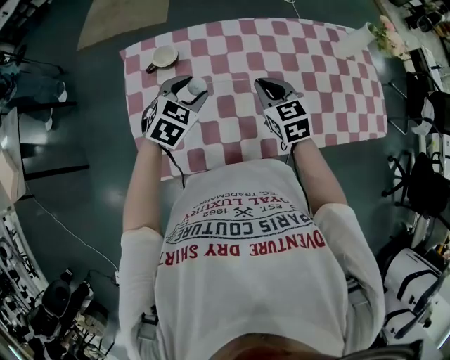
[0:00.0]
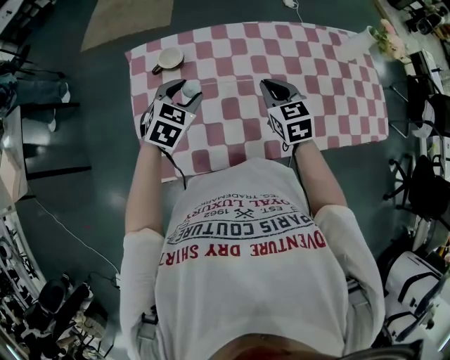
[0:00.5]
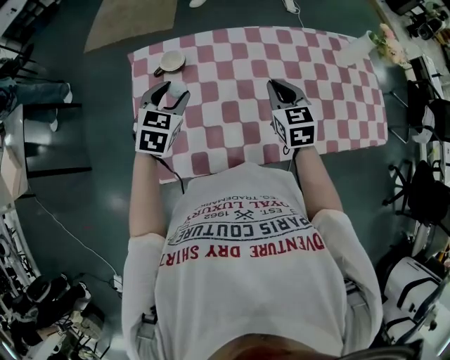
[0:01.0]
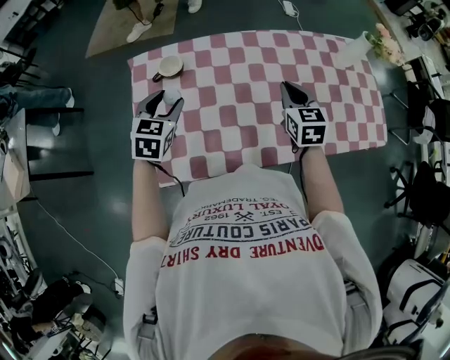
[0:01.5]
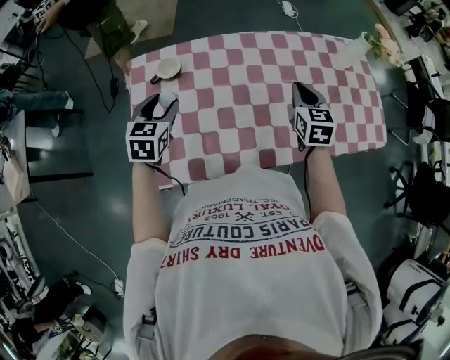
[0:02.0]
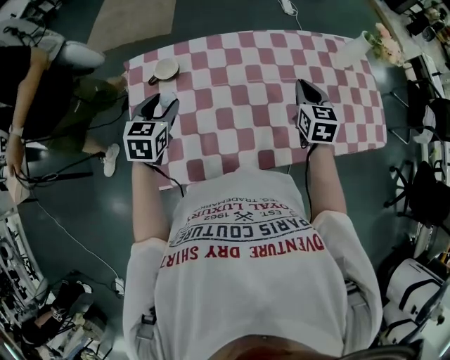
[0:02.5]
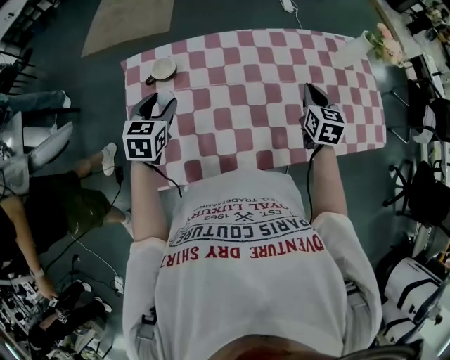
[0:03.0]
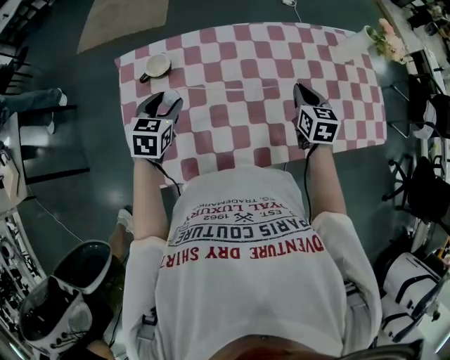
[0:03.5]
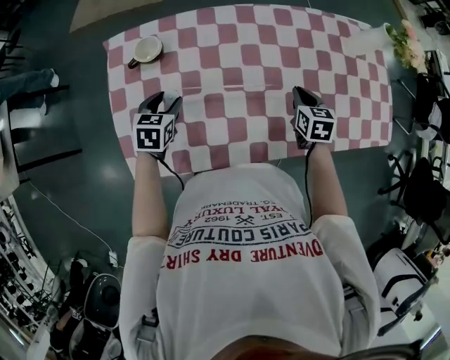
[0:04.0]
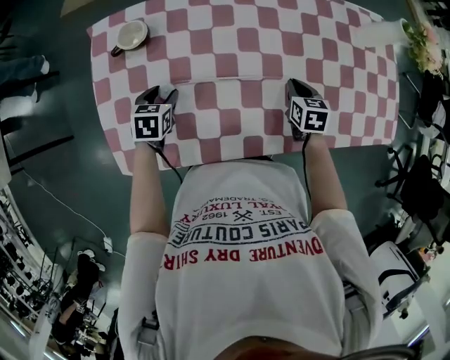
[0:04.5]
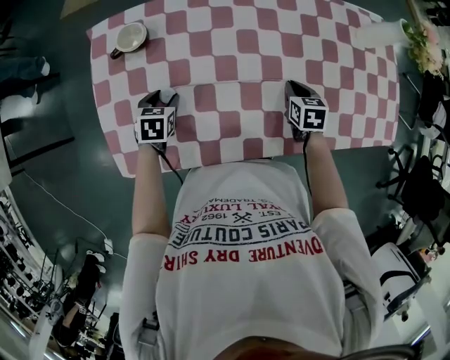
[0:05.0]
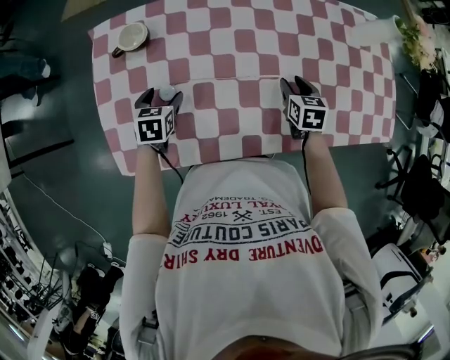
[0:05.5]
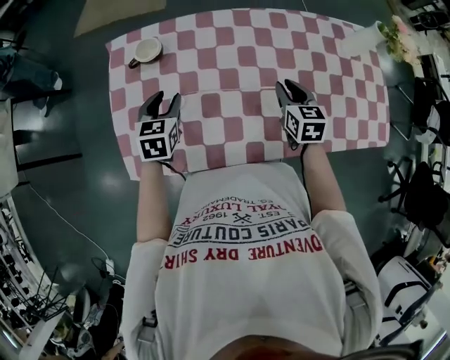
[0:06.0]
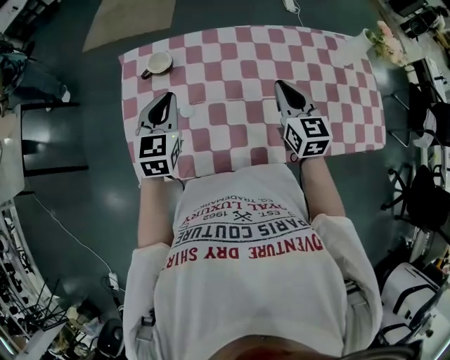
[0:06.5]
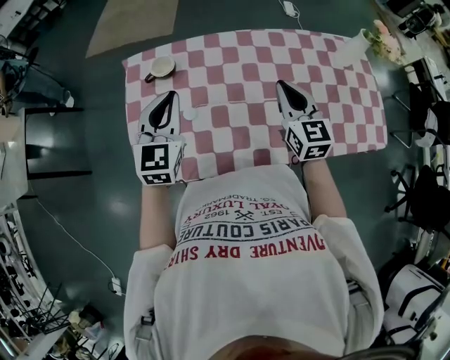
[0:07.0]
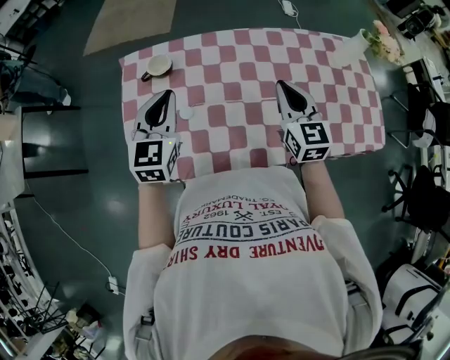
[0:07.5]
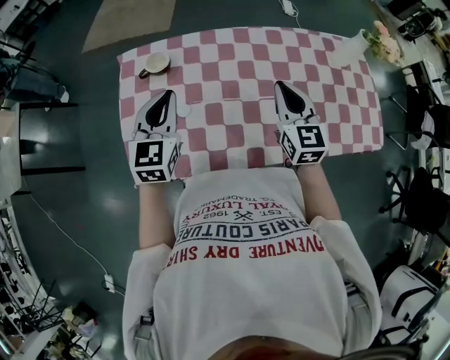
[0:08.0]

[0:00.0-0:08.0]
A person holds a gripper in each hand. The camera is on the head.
0:00.0 to 0:02.0: The right gripper shifts some 10 cm to the right, and swivels approximately 20 degrees, while the left gripper shifts some 10 cm to the left, and turns by approximately 30 degrees.
0:02.0 to 0:04.0: The grippers both shift downward by some 15 cm.
0:04.0 to 0:06.0: The right gripper changes place by roughly 5 cm; the left gripper reaches some 10 cm downward, then returns.
0:06.0 to 0:08.0: Both grippers travel together upward, some 15 cm. The left gripper changes its angle by approximately 30 degrees, and closes up. The right gripper rotates approximately 20 degrees, and closes its fingers.

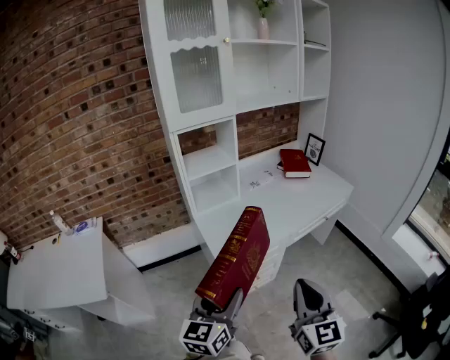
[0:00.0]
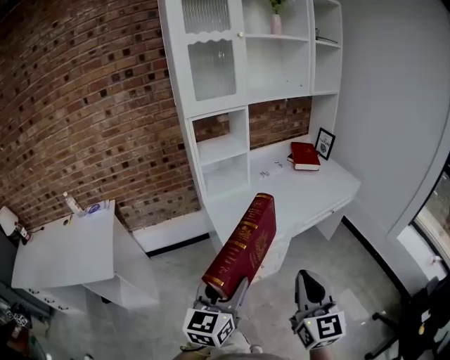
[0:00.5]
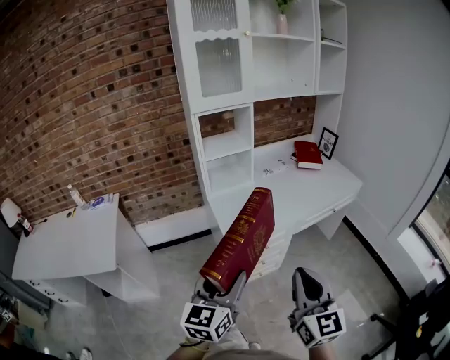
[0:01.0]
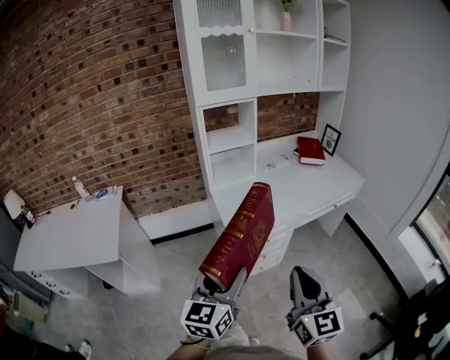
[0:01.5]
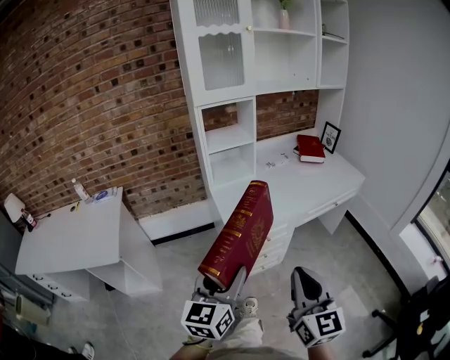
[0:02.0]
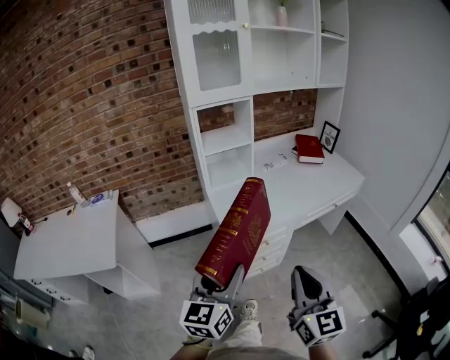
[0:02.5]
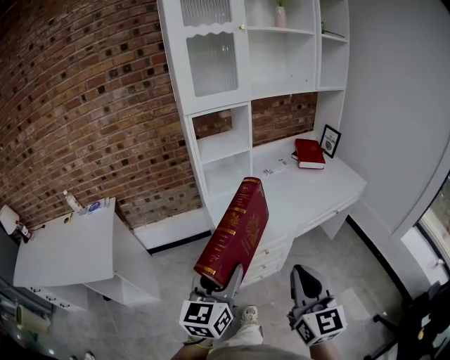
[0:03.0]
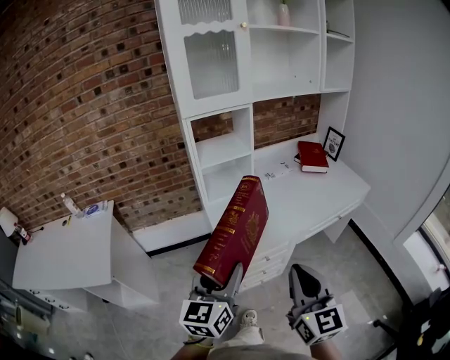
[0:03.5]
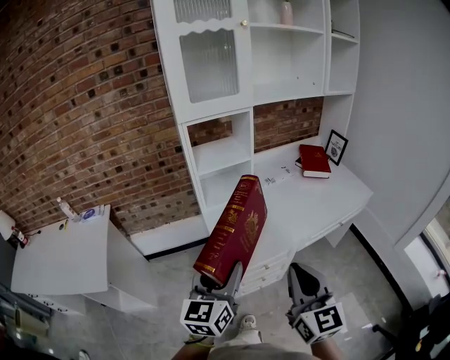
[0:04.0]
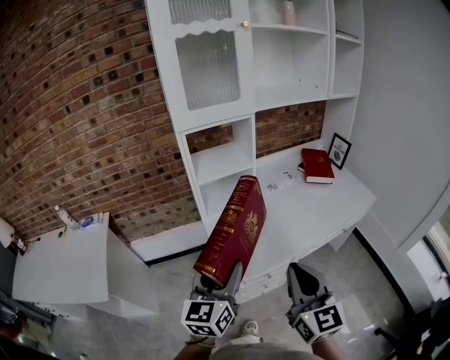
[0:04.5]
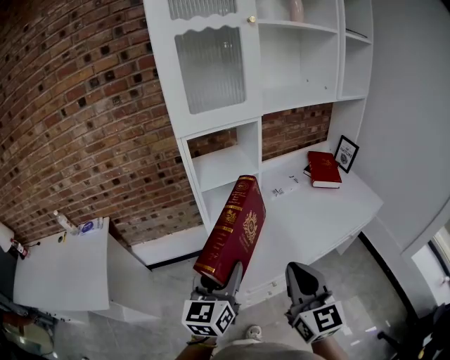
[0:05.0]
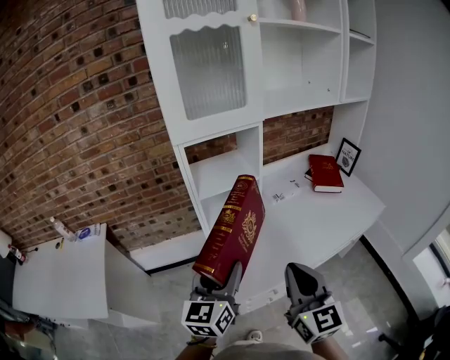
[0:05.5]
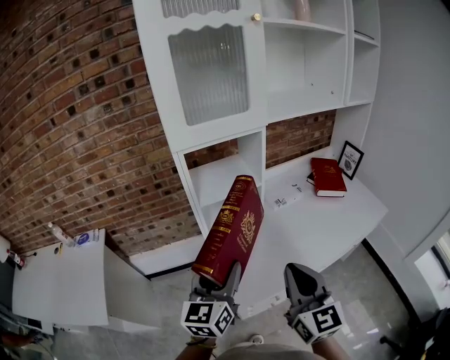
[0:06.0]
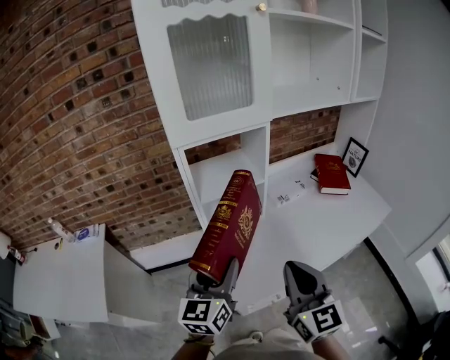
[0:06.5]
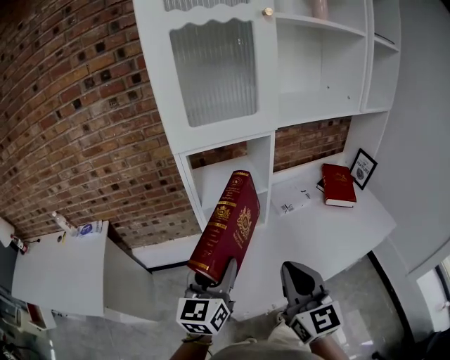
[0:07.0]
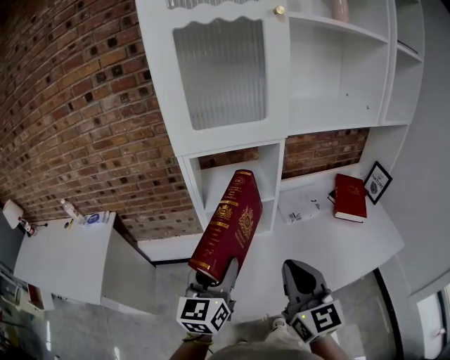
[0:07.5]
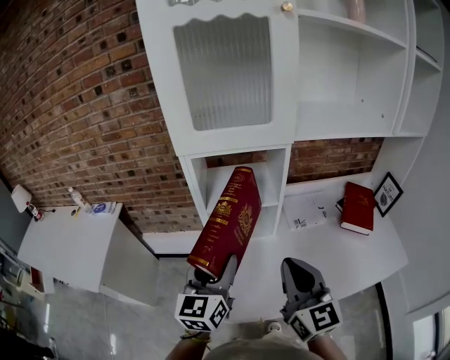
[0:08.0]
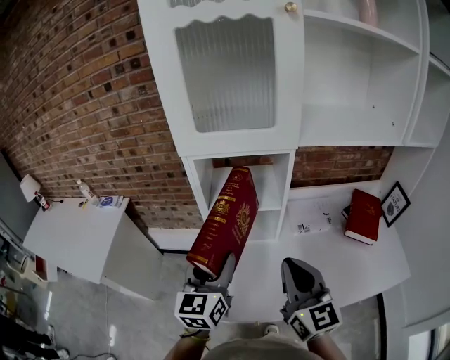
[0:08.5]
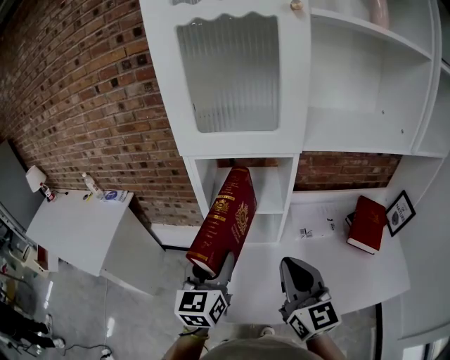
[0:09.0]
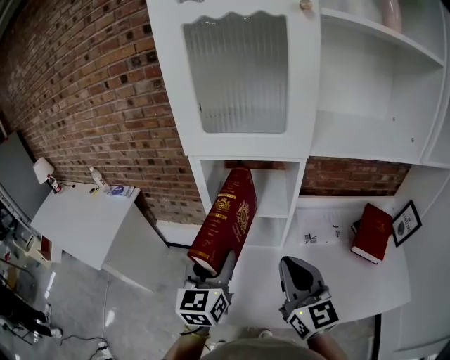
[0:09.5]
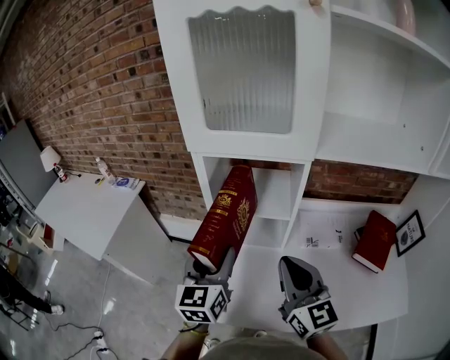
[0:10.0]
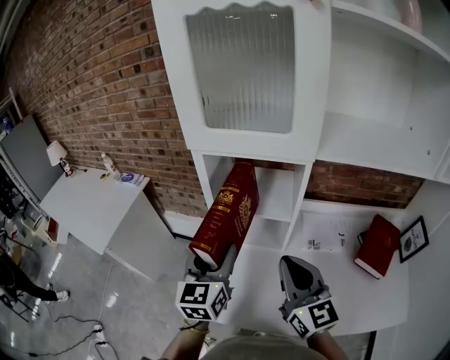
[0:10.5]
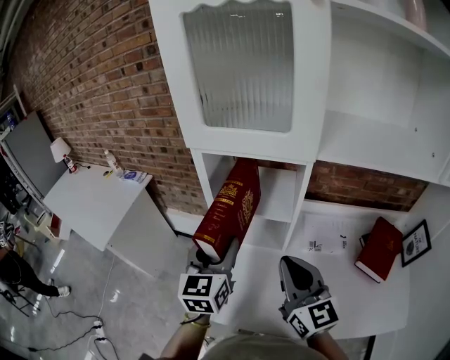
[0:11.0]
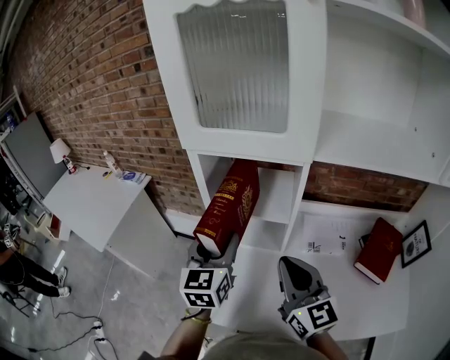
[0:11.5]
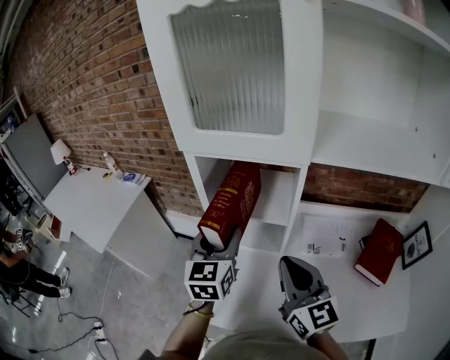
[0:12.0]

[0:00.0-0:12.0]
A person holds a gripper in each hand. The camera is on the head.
0:00.0 to 0:02.0: The grippers both shift backward by approximately 5 cm.
0:02.0 to 0:04.0: Both grippers travel together forward, about 20 cm.
0:04.0 to 0:06.0: The grippers both shift forward by some 15 cm.
0:06.0 to 0:08.0: The right gripper heads forward, covering roughly 10 cm. The left gripper shifts approximately 10 cm forward.
0:08.0 to 0:10.0: The right gripper is displaced forward by some 5 cm.
0:10.0 to 0:12.0: The left gripper shifts roughly 5 cm forward.

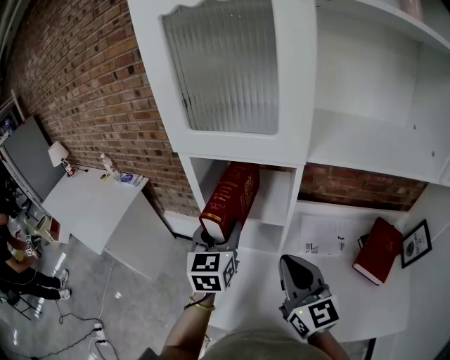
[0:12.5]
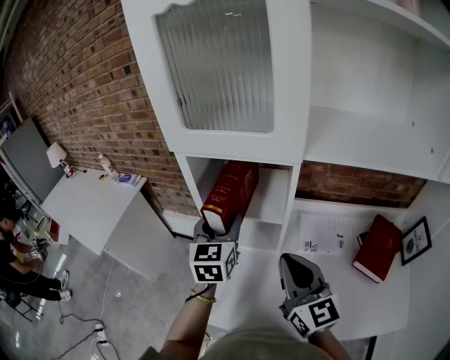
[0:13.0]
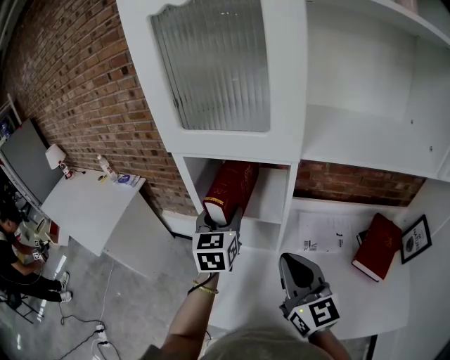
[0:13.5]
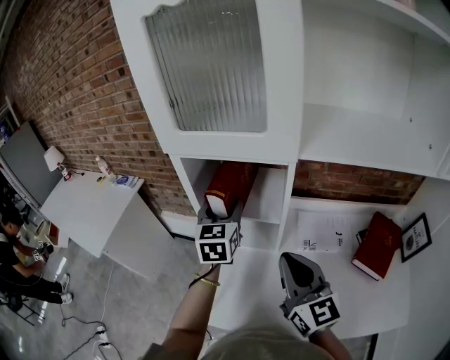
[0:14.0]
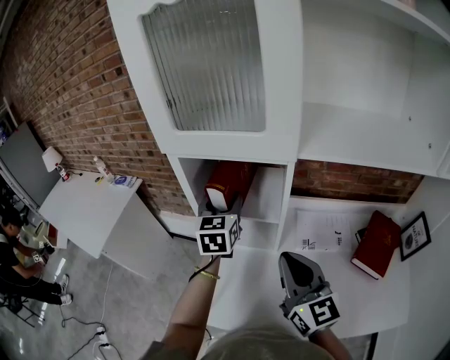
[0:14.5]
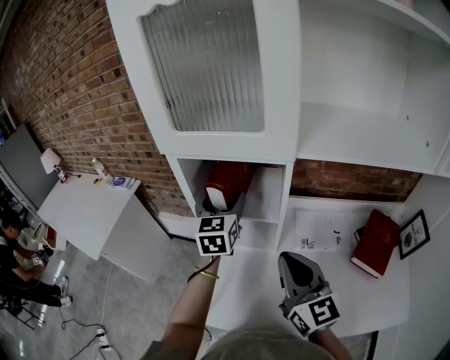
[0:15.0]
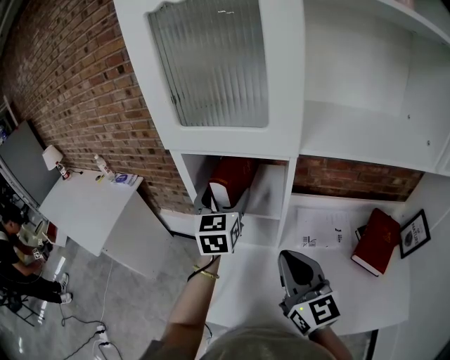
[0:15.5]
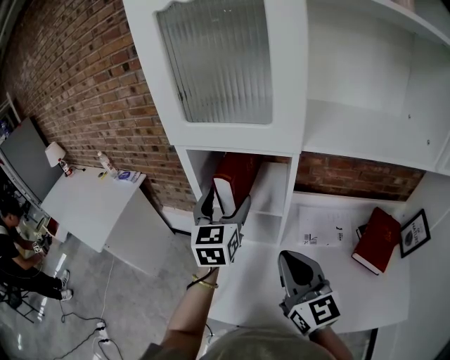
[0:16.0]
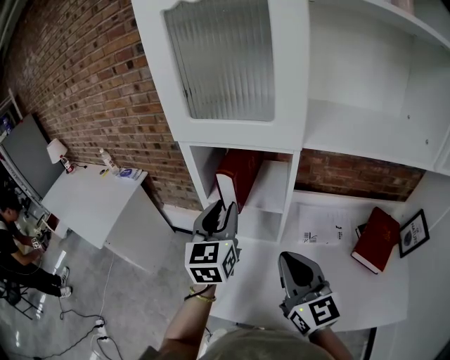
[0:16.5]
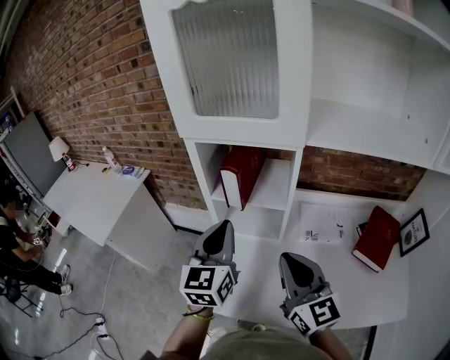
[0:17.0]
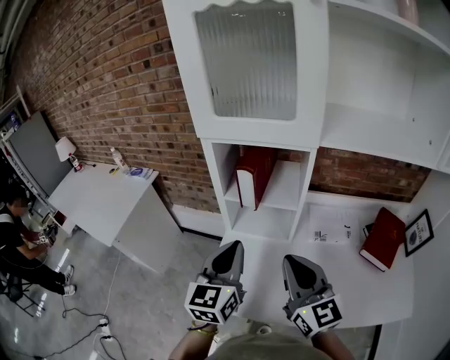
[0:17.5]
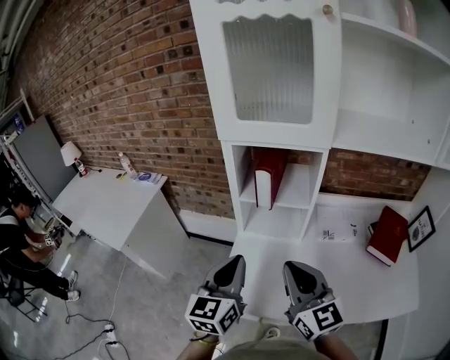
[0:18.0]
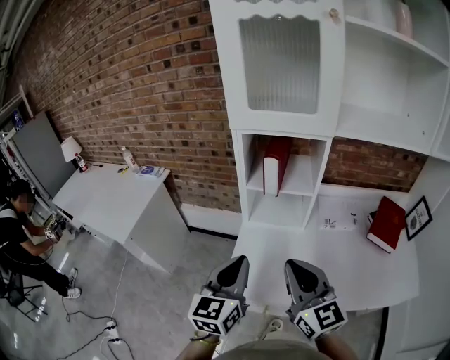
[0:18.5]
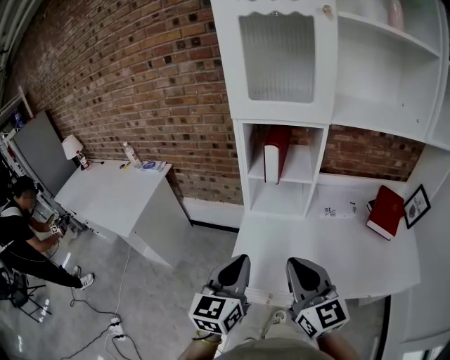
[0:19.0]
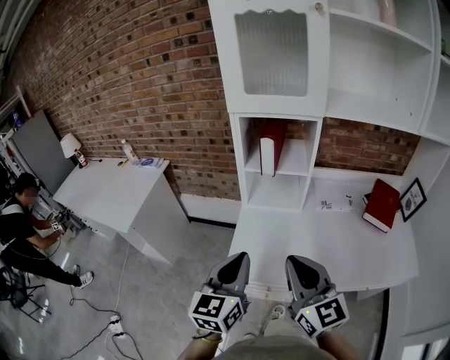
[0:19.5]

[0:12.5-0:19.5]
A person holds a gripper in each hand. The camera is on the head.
0:12.5 to 0:14.5: The left gripper is displaced forward by about 10 cm.
0:14.5 to 0:16.0: The left gripper moves backward, approximately 5 cm, and opens up.
0:16.0 to 0:17.5: The right gripper shifts by some 5 cm; the left gripper is displaced backward by some 15 cm, and closes.
0:17.5 to 0:19.5: Both grippers move backward and to the left, about 20 cm.
